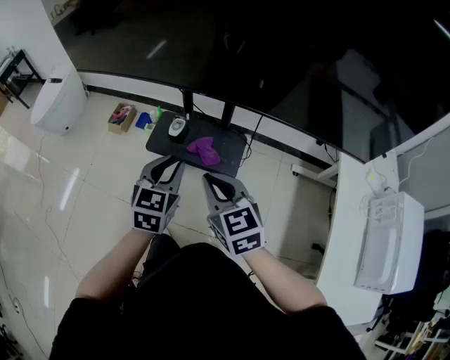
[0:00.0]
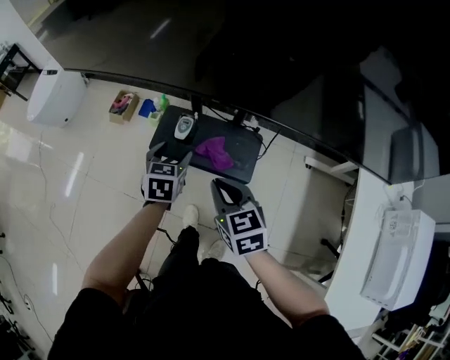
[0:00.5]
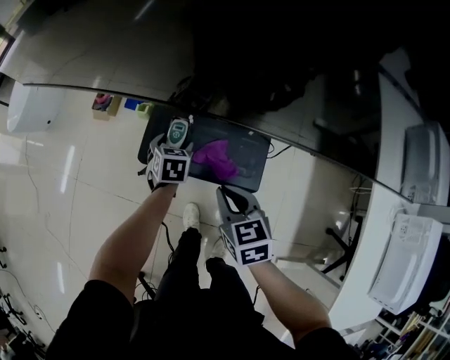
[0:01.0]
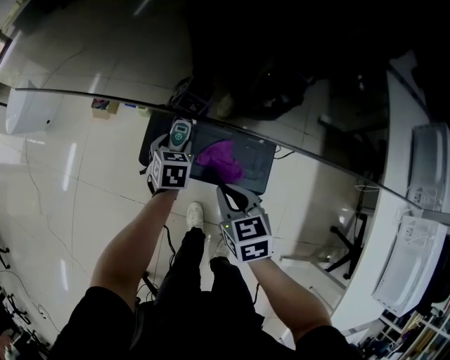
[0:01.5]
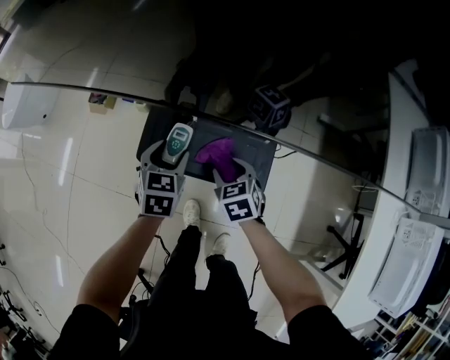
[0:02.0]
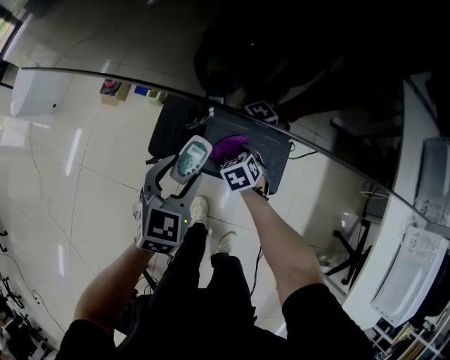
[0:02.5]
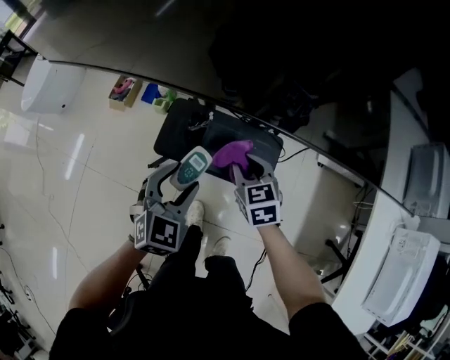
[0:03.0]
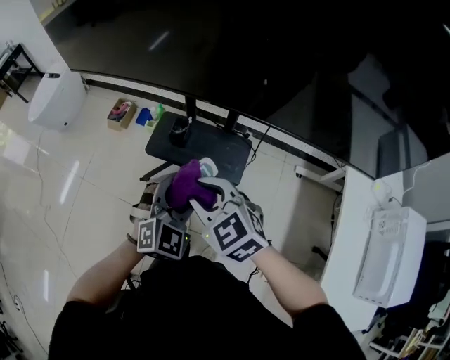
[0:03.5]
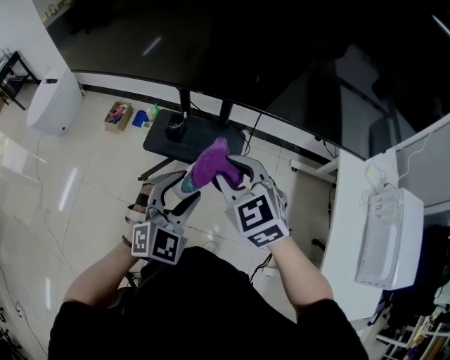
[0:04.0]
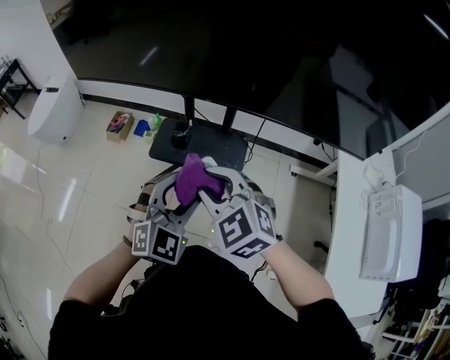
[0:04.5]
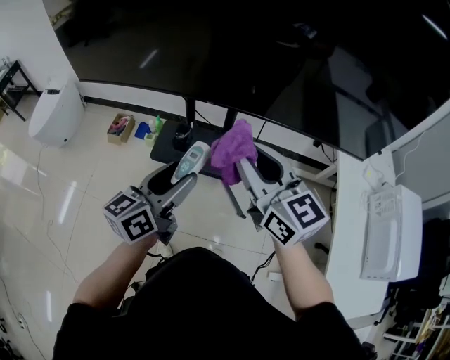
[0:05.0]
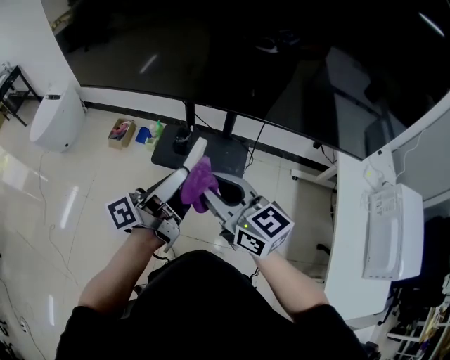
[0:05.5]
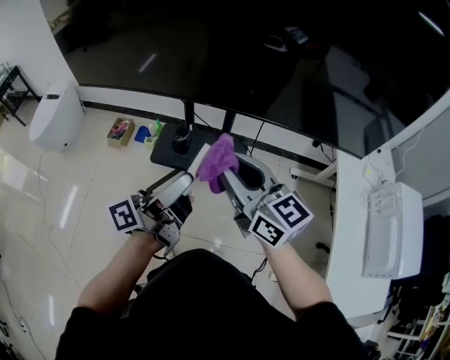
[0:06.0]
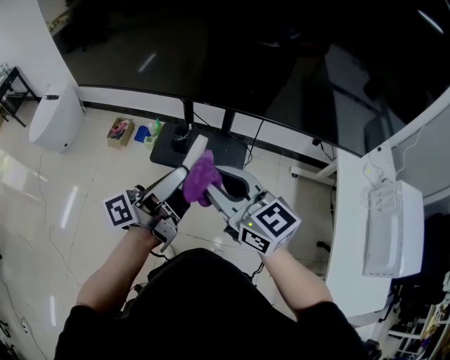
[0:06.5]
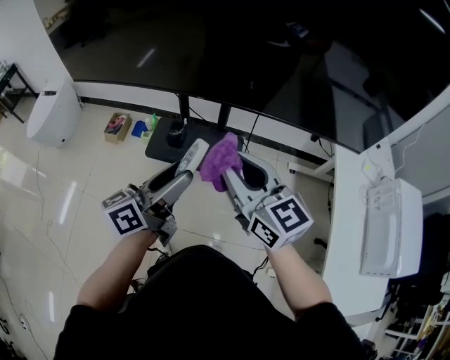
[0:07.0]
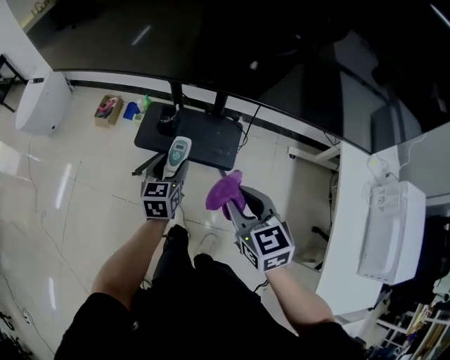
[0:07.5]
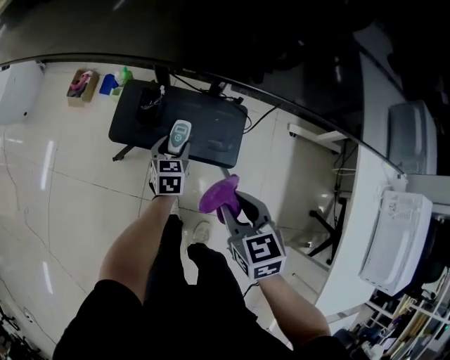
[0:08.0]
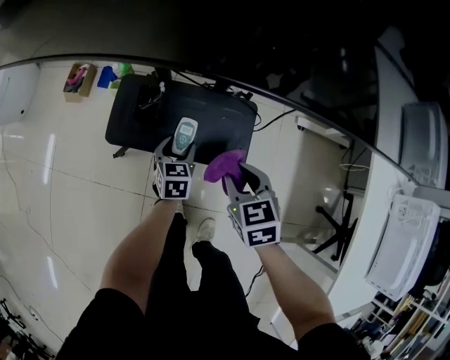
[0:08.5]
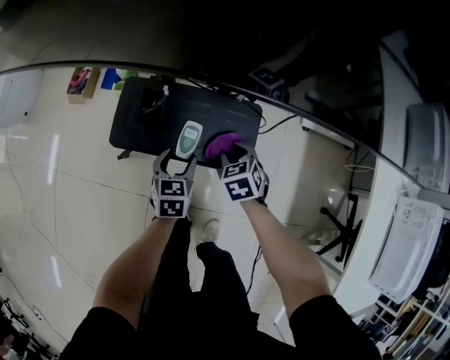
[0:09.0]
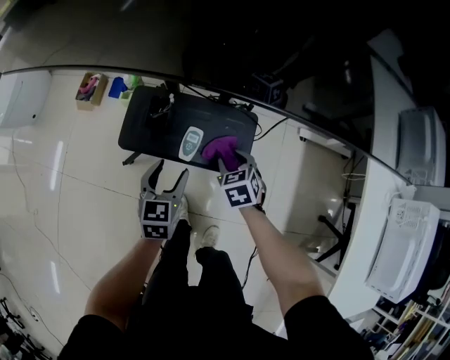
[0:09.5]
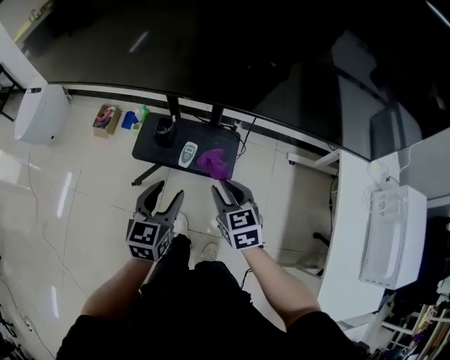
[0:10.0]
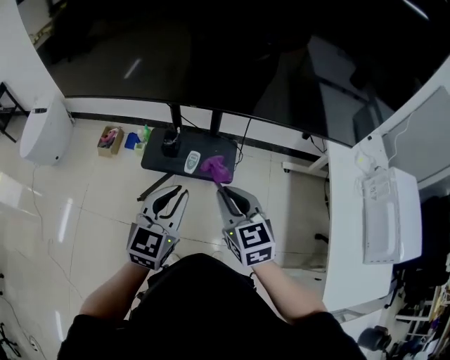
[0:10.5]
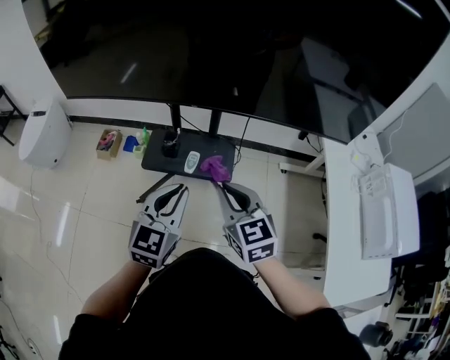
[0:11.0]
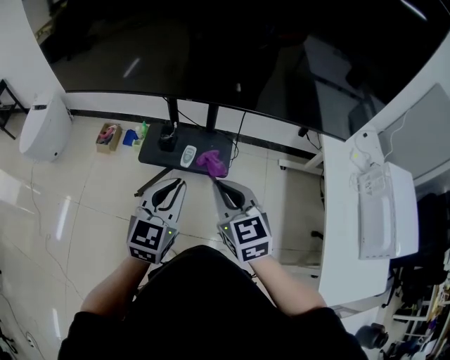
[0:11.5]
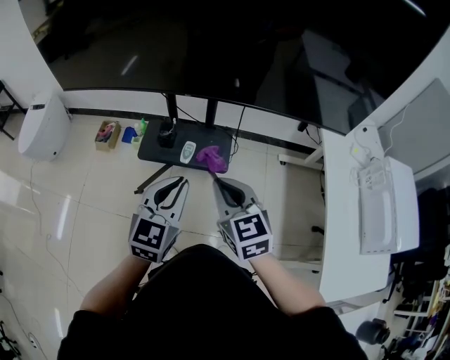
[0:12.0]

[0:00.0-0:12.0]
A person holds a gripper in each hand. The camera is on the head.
0:00.0 to 0:02.0: The two grippers go approximately 35 cm downward and forward. The right gripper changes its angle by some 30 degrees, and opens up, while the left gripper opens.
0:02.0 to 0:04.0: The right gripper travels upward and backward by some 40 cm, swivels some 40 degrees, and closes up. Meanwhile the left gripper shifts some 40 cm backward and upward, and rotates around the line of its fingers by roughly 40 degrees, clockwise from behind.
0:04.0 to 0:06.0: The left gripper heads upward and to the left, covering approximately 10 cm, and rotates around the line of its fingers by approximately 100 degrees, counterclockwise from behind, while the right gripper swings up and down, roughly 10 cm each way, with 2 reversals, and rotates about 40 degrees.
0:06.0 to 0:08.0: The left gripper travels downward and forward by some 50 cm, and tilts its fingers approximately 60 degrees downward; the right gripper travels downward by about 30 cm, and points its fingers some 40 degrees further downward.
0:08.0 to 0:10.0: The left gripper travels upward and backward by some 30 cm. The right gripper reaches approximately 20 cm downward, then returns.
0:10.0 to 0:12.0: Both grippers move upward and backward, about 20 cm. The right gripper closes up. Meanwhile the left gripper rotates approximately 20 degrees, and closes up.

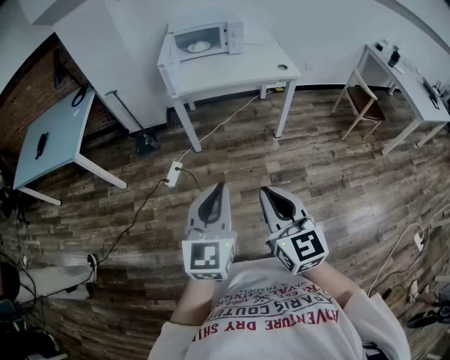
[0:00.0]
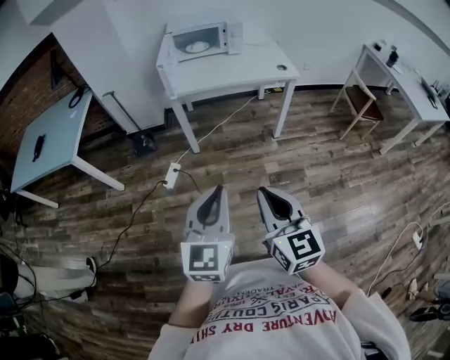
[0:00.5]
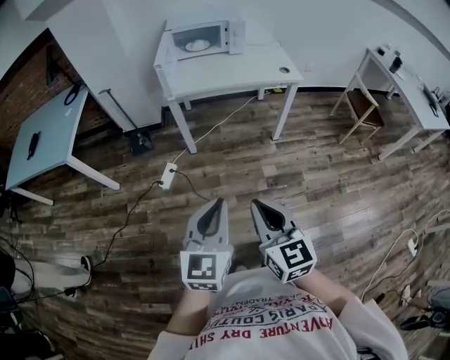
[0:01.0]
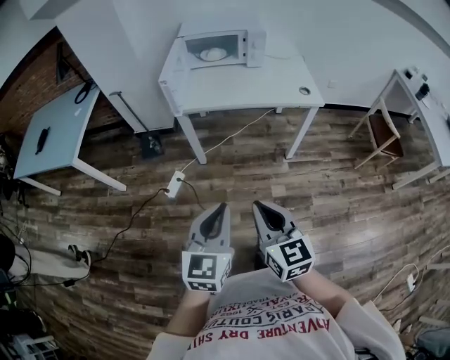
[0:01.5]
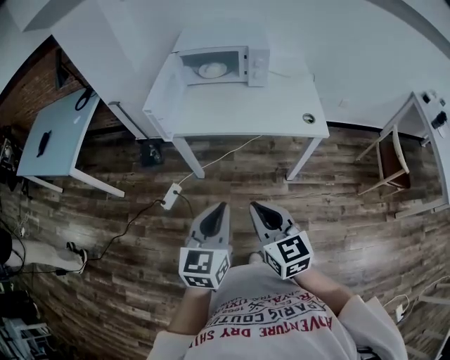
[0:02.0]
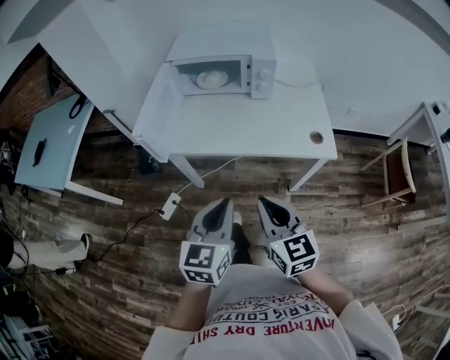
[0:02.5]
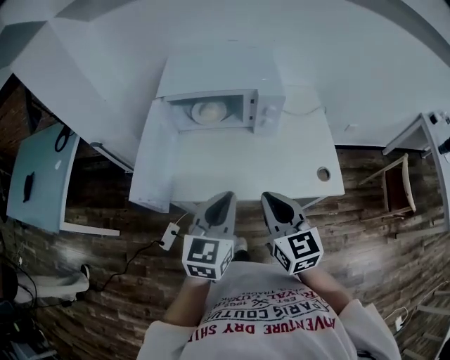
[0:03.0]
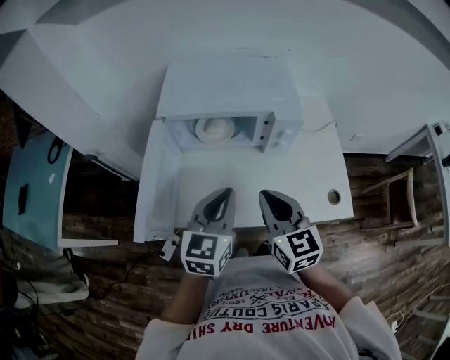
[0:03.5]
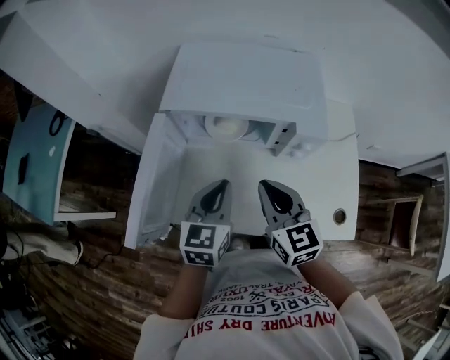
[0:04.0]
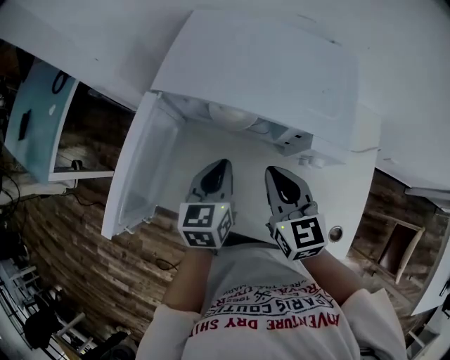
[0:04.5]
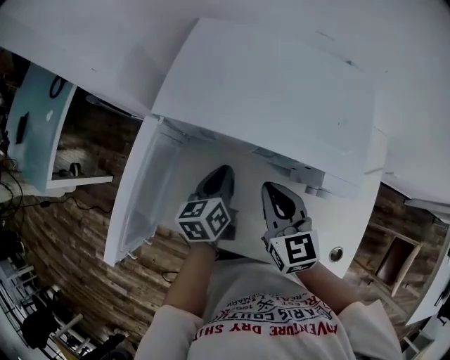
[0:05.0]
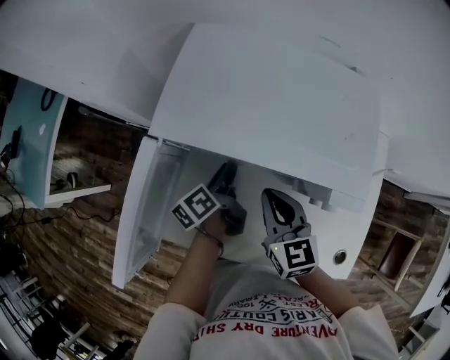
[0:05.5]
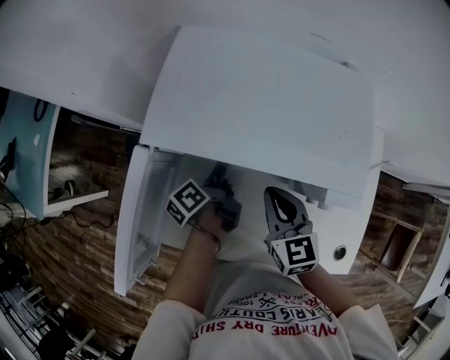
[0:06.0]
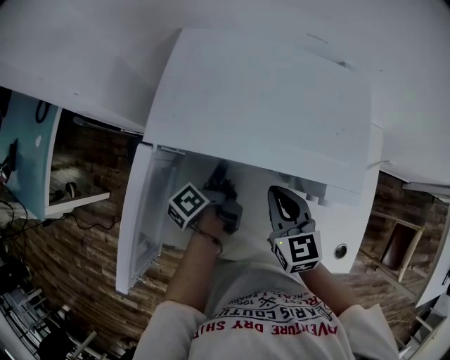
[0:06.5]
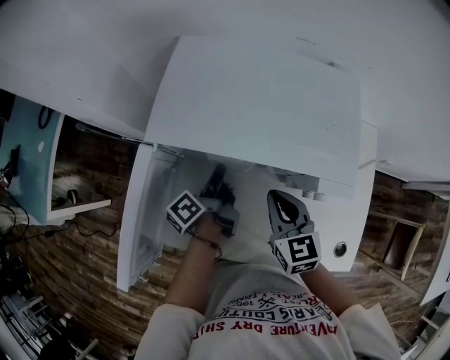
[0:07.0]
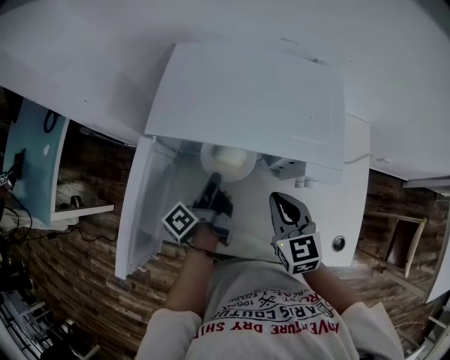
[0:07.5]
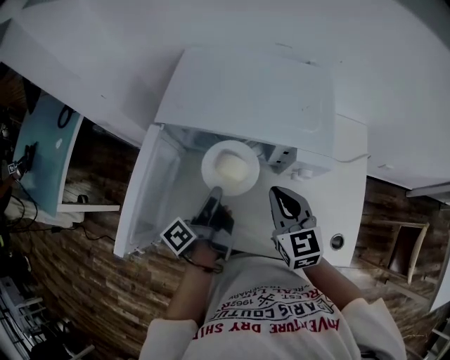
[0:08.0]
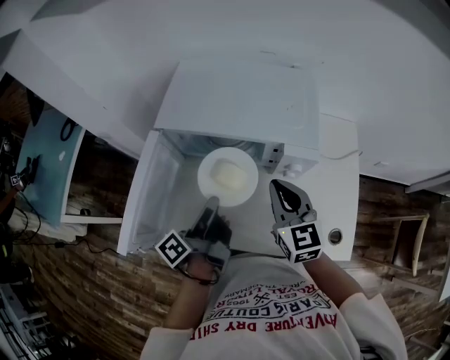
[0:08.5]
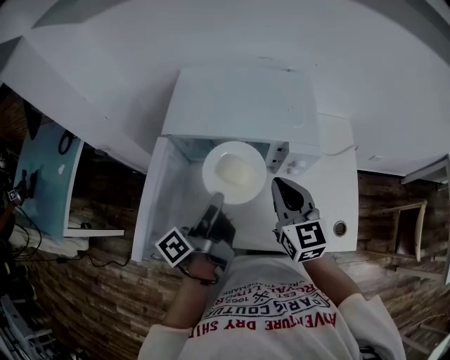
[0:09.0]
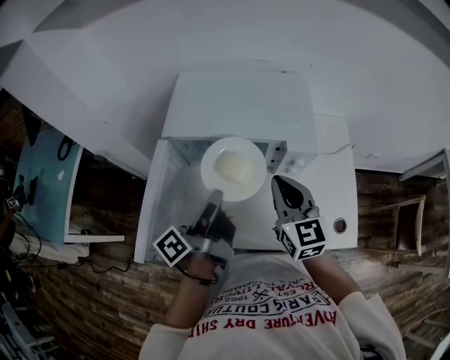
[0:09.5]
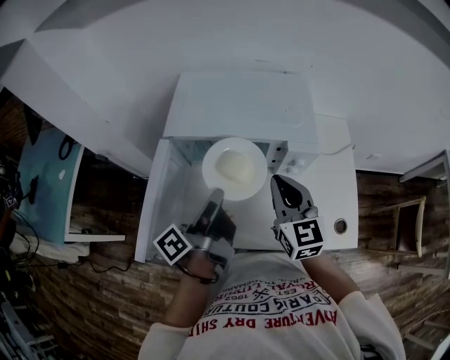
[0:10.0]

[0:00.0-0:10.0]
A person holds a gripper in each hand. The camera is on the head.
0:00.0 to 0:02.0: The left gripper heads forward and to the right, covering some 35 cm, while the right gripper is displaced forward by roughly 35 cm.
0:02.0 to 0:04.0: Both grippers are carried forward, roughly 50 cm.
0:04.0 to 0:06.0: The left gripper goes roughly 25 cm forward and downward, rotates around the line of its fingers by some 80 degrees, counterclockwise from behind, and opens its fingers. The right gripper moves forward and downward, approximately 15 cm.
0:06.0 to 0:08.0: The left gripper moves backward and upward, some 20 cm, rotates some 20 degrees, and closes. The right gripper is displaced backward and upward by roughly 10 cm.
0:08.0 to 0:10.0: Both grippers move upward, some 10 cm.

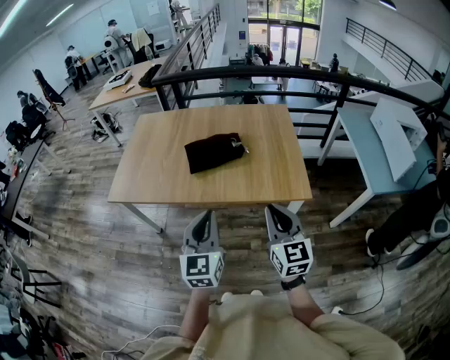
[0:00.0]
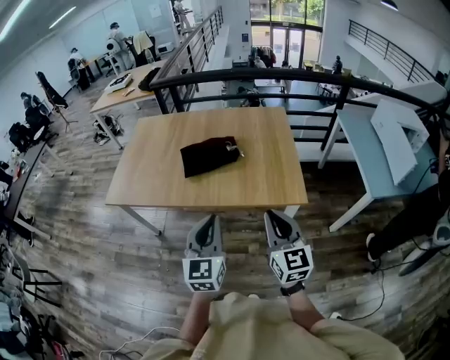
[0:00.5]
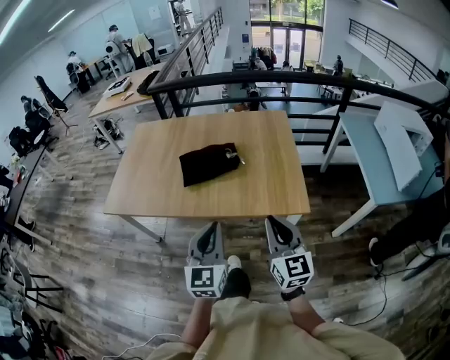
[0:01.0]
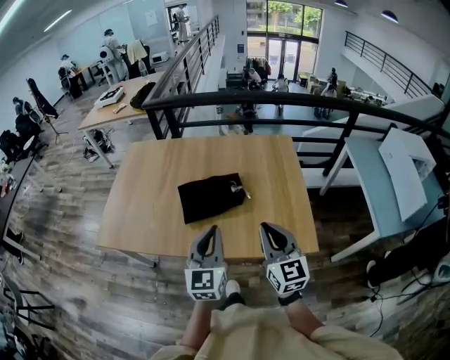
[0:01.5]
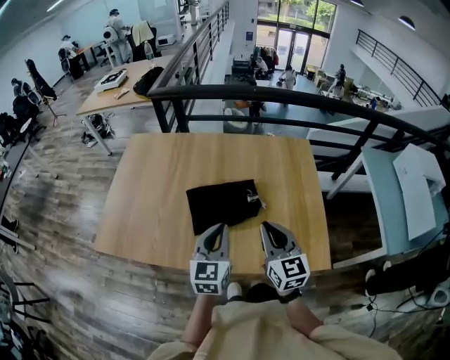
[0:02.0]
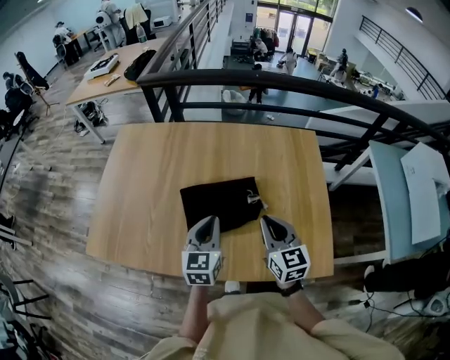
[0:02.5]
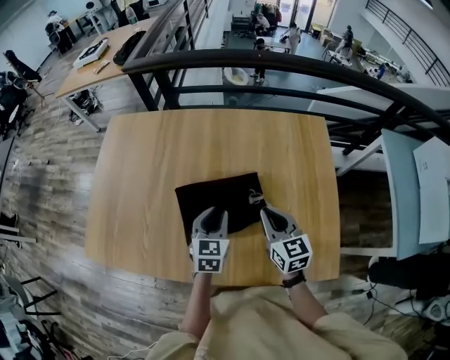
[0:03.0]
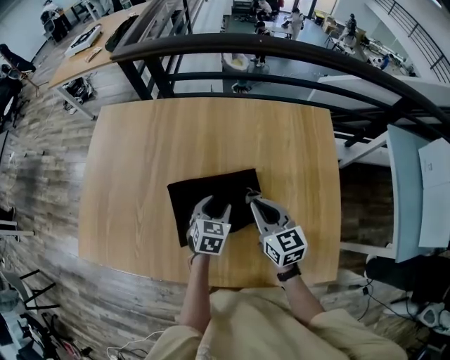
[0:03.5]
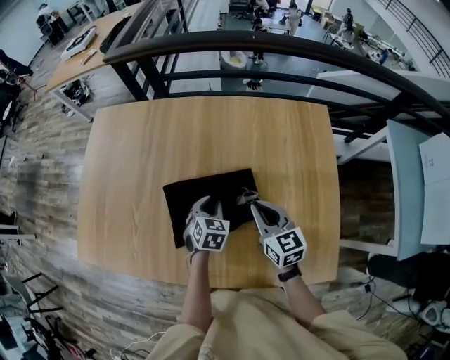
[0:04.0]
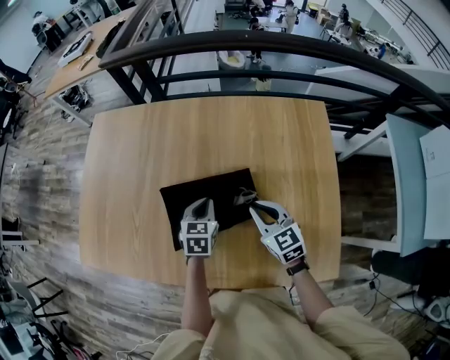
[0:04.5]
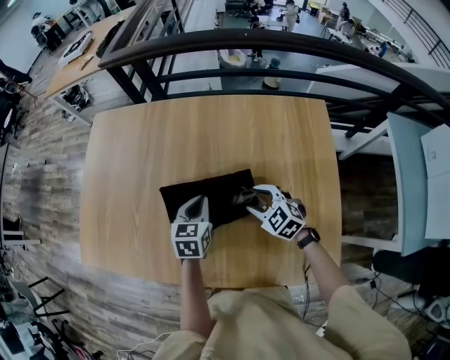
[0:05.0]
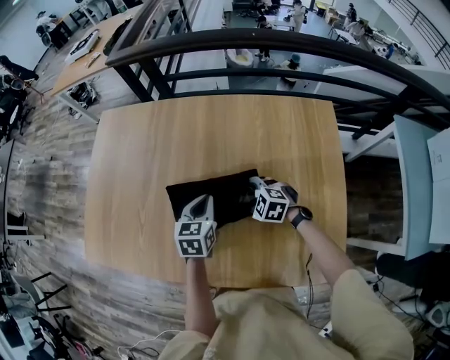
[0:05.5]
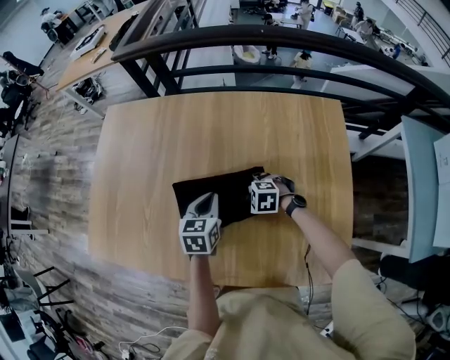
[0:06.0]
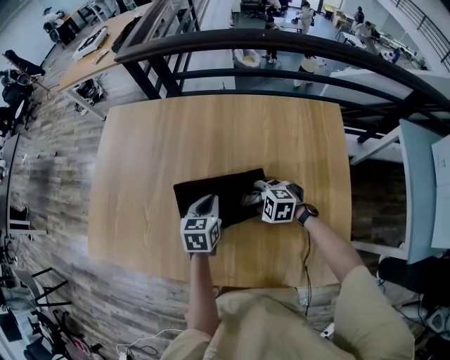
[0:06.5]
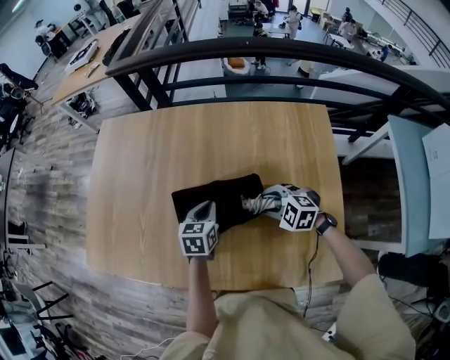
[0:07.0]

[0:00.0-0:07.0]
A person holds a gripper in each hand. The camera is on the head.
0:00.0 to 0:02.0: Both grippers move forward, some 35 cm.
0:02.0 to 0:03.5: The right gripper moves forward and downward, some 25 cm; the left gripper shifts approximately 30 cm downward and forward, angles its fingers downward, by roughly 30 degrees, and opens.
0:03.5 to 0:05.0: The right gripper is displaced downward by about 10 cm, swivels about 40 degrees, and opens; the left gripper shifts by about 5 cm, and closes its fingers.
0:05.0 to 0:07.0: The right gripper goes downward and returns, approximately 10 cm each way, and changes its angle by roughly 20 degrees.
